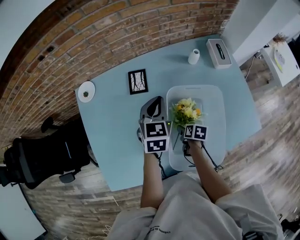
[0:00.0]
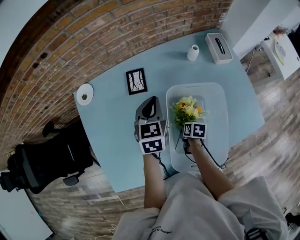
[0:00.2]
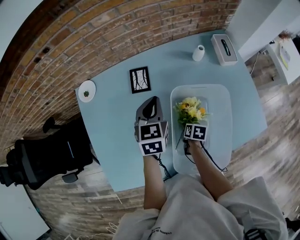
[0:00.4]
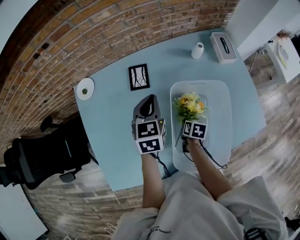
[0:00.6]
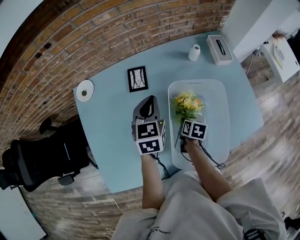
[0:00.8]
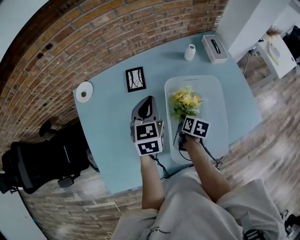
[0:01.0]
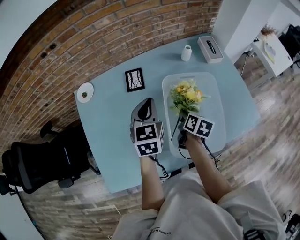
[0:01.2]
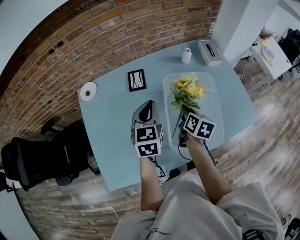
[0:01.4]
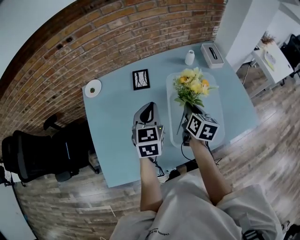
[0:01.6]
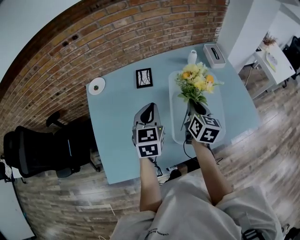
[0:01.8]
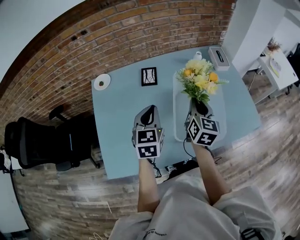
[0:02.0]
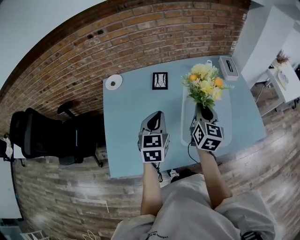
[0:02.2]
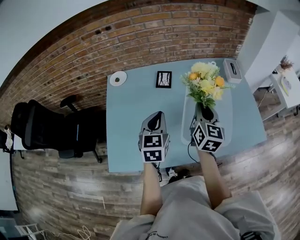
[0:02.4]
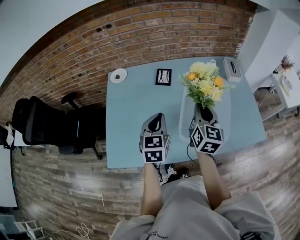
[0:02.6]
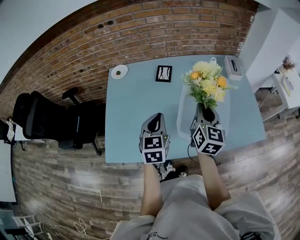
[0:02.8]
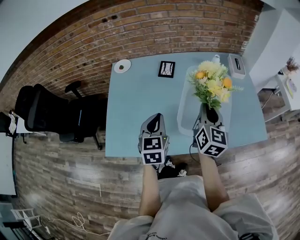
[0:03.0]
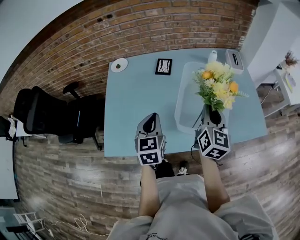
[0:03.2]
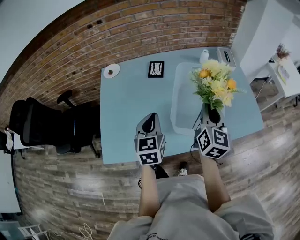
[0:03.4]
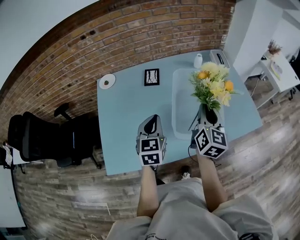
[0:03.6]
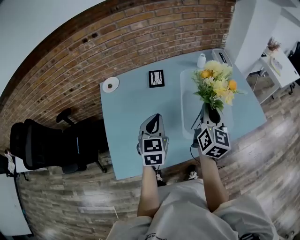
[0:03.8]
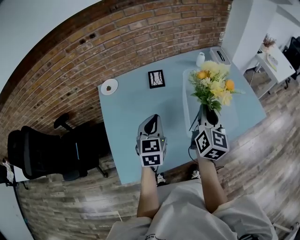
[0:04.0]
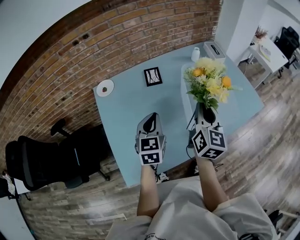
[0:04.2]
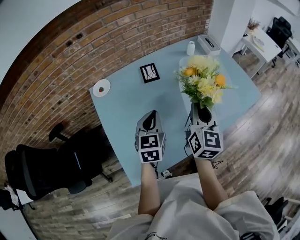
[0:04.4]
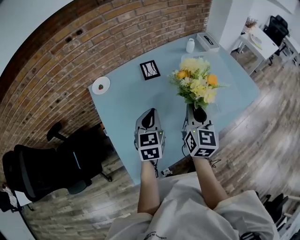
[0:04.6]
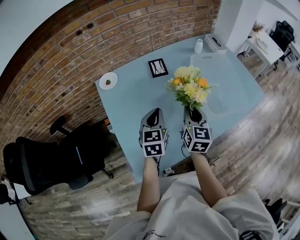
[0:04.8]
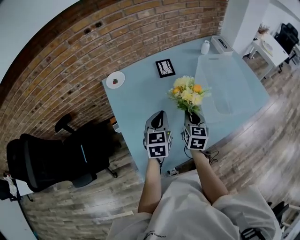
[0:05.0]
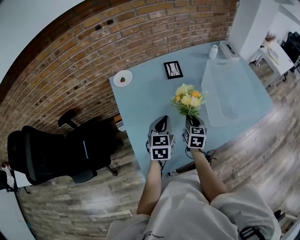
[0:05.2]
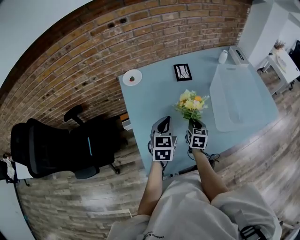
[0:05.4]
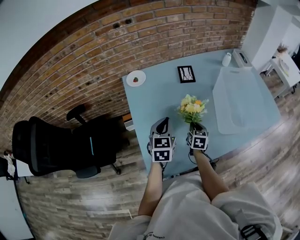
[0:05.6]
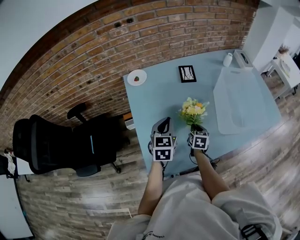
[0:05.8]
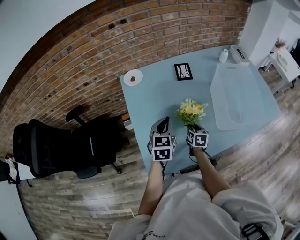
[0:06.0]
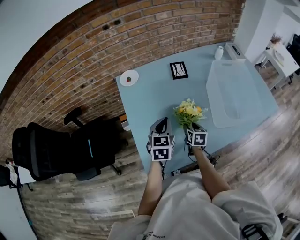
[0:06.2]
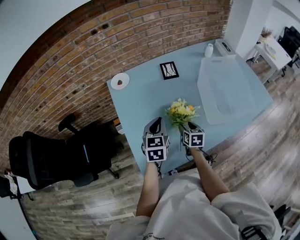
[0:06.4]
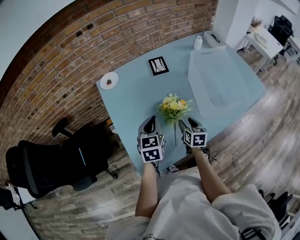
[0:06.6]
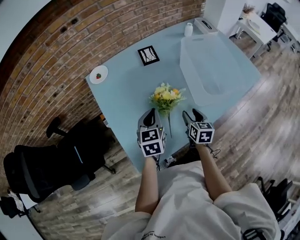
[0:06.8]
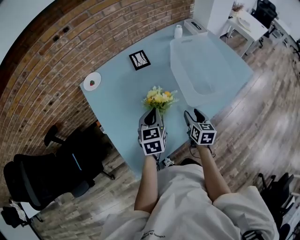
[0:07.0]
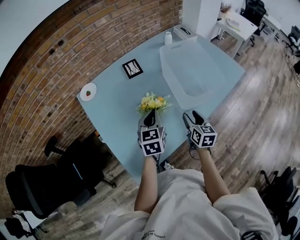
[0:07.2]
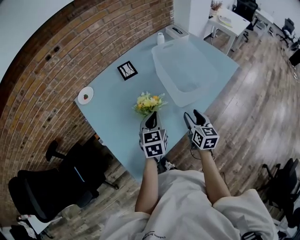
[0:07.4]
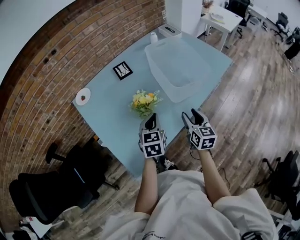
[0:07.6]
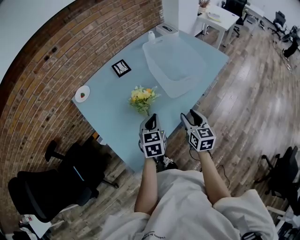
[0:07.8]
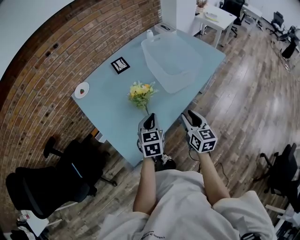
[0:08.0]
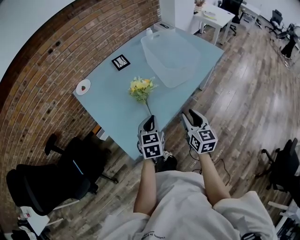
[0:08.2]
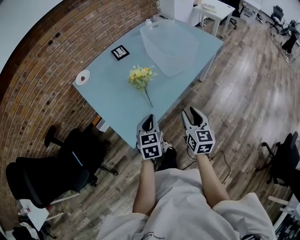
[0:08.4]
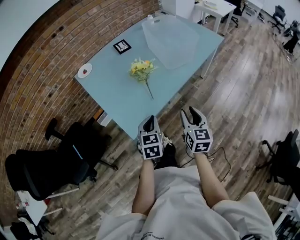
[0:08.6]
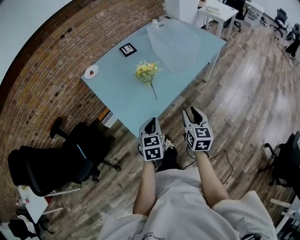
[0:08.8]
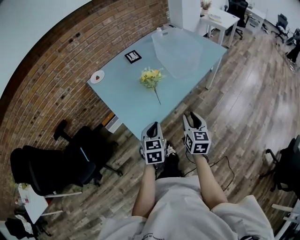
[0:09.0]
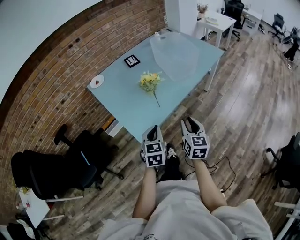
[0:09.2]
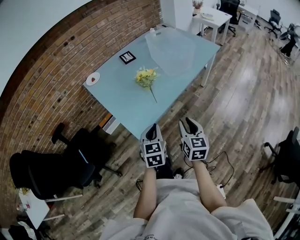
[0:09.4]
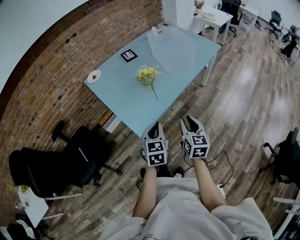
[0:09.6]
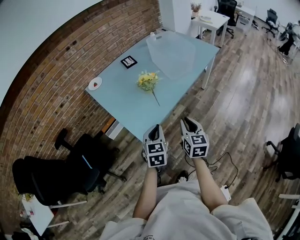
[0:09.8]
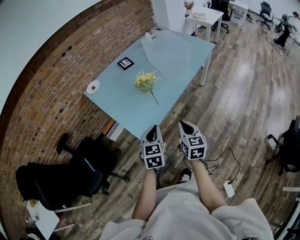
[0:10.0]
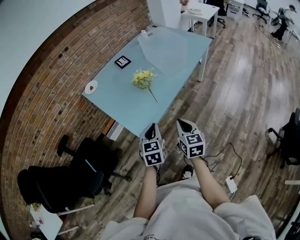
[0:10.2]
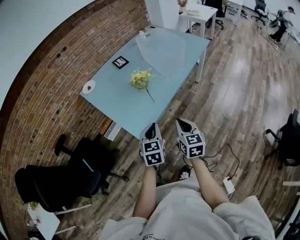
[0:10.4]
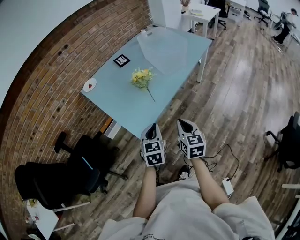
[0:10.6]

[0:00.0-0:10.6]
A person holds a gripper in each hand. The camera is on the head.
0:00.0 to 0:01.6: The right gripper travels upward by roughly 20 cm, points its fingers some 30 degrees further upward, and closes up, while the left gripper moves backward and to the left, approximately 15 cm.
0:01.6 to 0:03.0: The right gripper moves upward and backward, some 15 cm, and changes its angle by about 30 degrees. The left gripper heads backward, covering some 15 cm.
0:03.0 to 0:04.6: The right gripper moves to the left and backward, approximately 15 cm; the left gripper goes approximately 10 cm to the left, and swivels roughly 20 degrees.
0:04.6 to 0:06.0: The left gripper travels to the left by roughly 10 cm, while the right gripper goes roughly 30 cm downward, and angles its fingers downward, by approximately 40 degrees.
0:06.0 to 0:07.6: The left gripper goes roughly 20 cm to the right and backward; the right gripper shifts about 30 cm to the right, upward and backward, changes its angle by about 30 degrees, and opens its fingers.
0:07.6 to 0:09.0: The grippers both shift backward by about 25 cm.
0:09.0 to 0:10.6: The right gripper is displaced backward by some 5 cm, and closes.

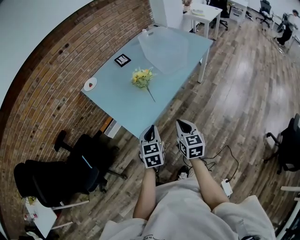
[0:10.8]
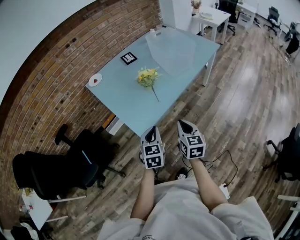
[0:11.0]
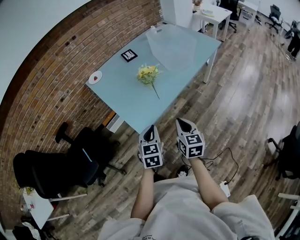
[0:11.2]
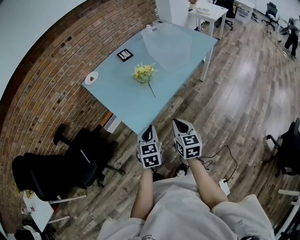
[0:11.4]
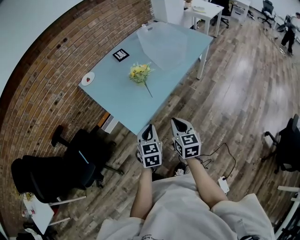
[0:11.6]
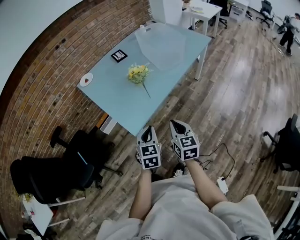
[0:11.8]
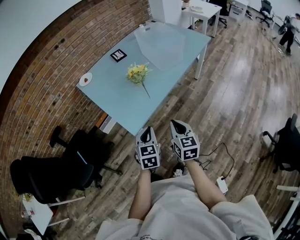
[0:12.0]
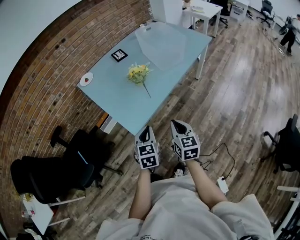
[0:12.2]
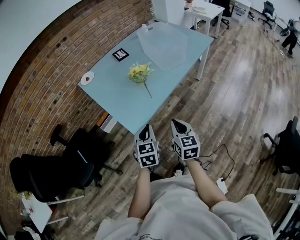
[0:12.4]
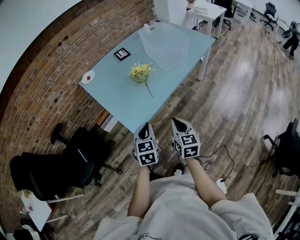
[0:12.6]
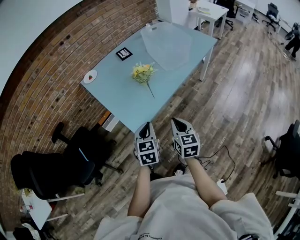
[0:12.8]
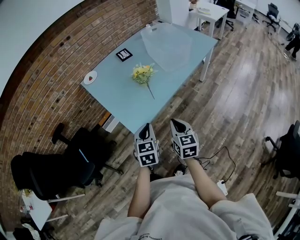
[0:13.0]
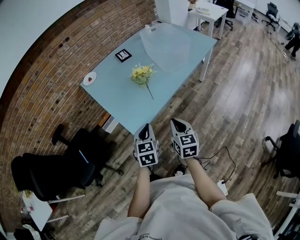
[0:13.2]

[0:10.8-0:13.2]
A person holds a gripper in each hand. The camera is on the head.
0:10.8 to 0:13.2: The grippers stay close to where they were, moving slightly.

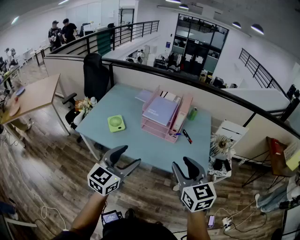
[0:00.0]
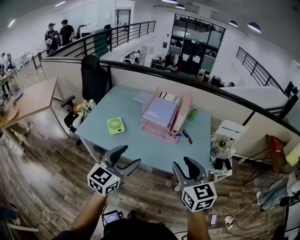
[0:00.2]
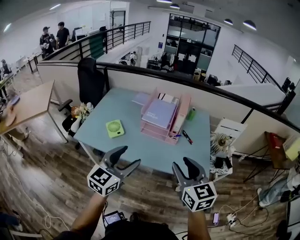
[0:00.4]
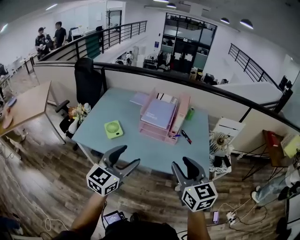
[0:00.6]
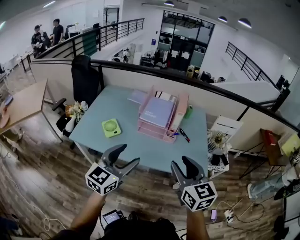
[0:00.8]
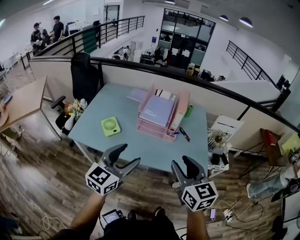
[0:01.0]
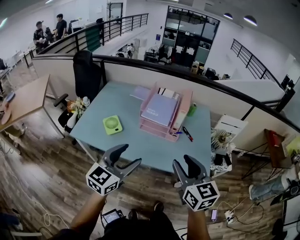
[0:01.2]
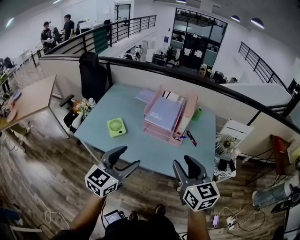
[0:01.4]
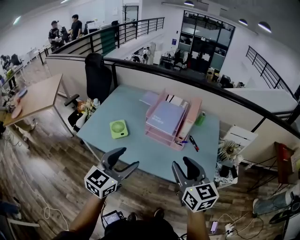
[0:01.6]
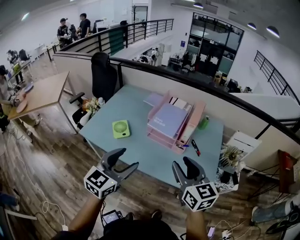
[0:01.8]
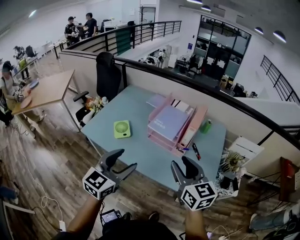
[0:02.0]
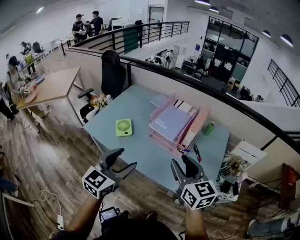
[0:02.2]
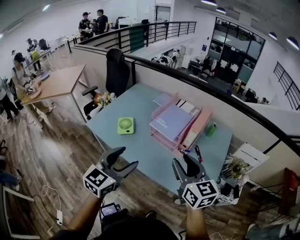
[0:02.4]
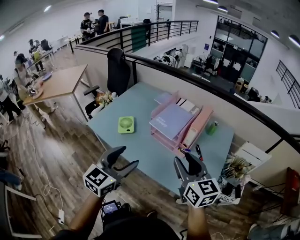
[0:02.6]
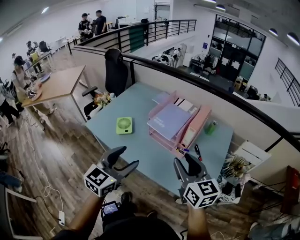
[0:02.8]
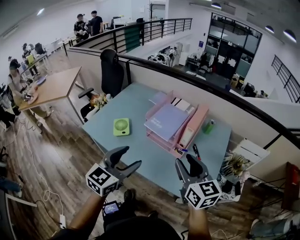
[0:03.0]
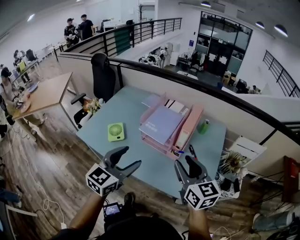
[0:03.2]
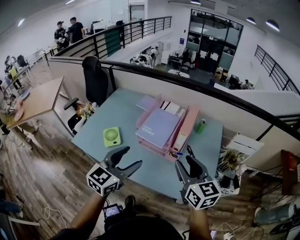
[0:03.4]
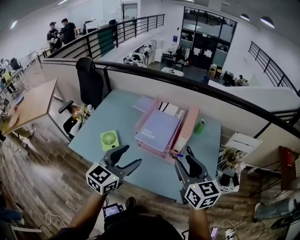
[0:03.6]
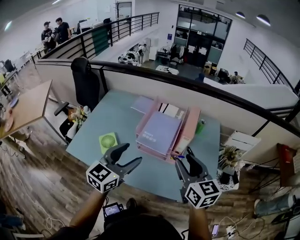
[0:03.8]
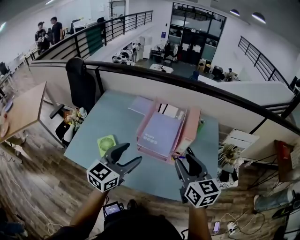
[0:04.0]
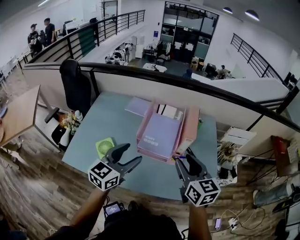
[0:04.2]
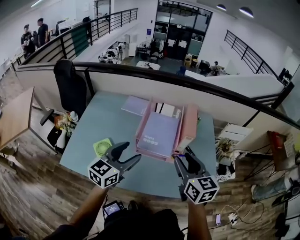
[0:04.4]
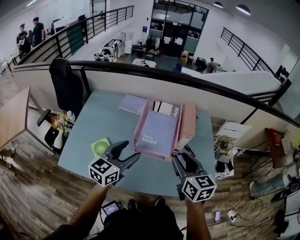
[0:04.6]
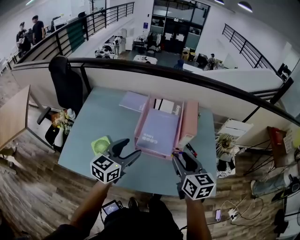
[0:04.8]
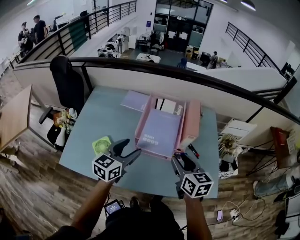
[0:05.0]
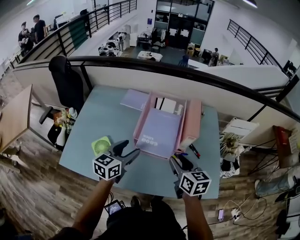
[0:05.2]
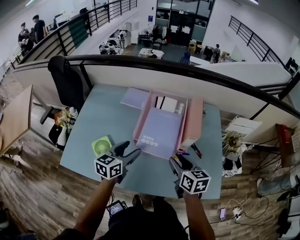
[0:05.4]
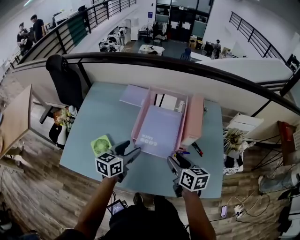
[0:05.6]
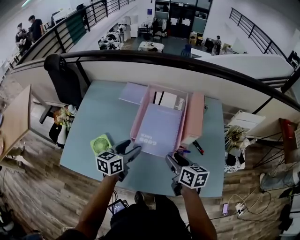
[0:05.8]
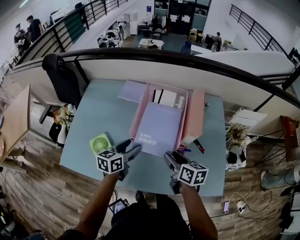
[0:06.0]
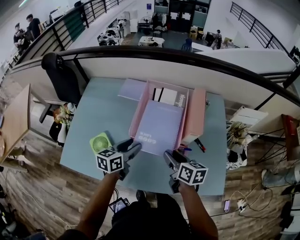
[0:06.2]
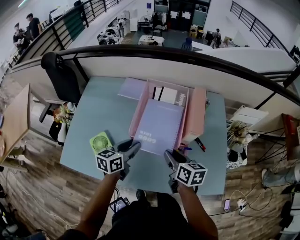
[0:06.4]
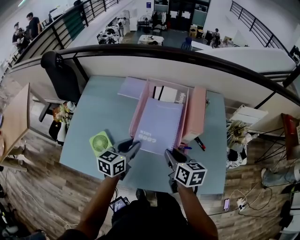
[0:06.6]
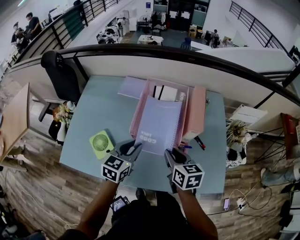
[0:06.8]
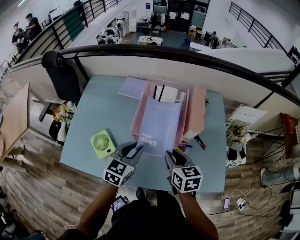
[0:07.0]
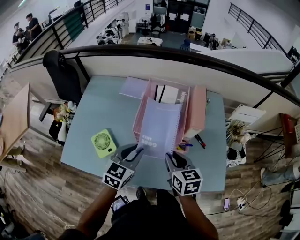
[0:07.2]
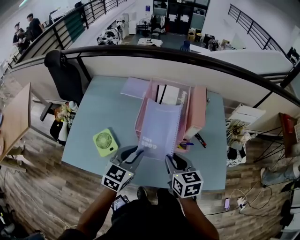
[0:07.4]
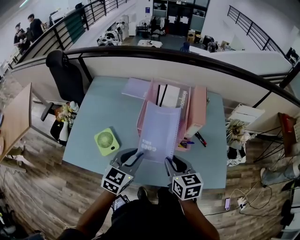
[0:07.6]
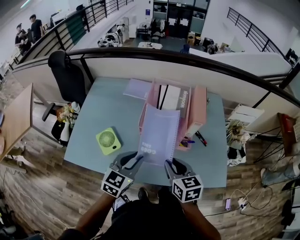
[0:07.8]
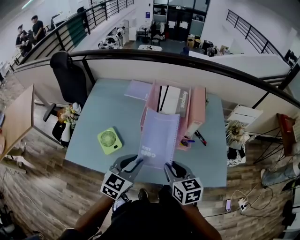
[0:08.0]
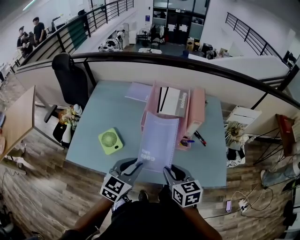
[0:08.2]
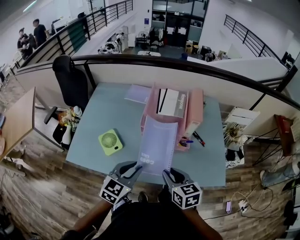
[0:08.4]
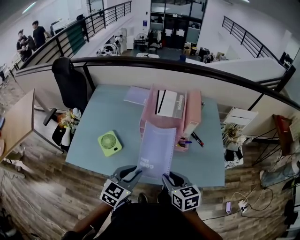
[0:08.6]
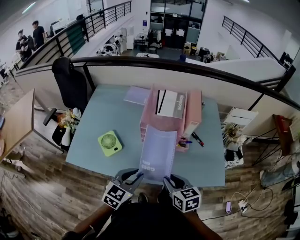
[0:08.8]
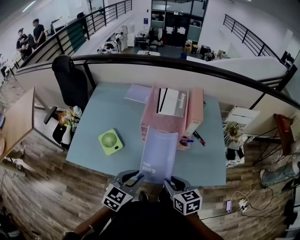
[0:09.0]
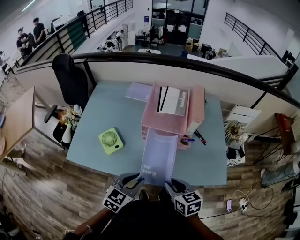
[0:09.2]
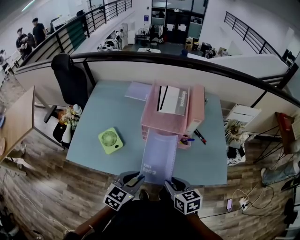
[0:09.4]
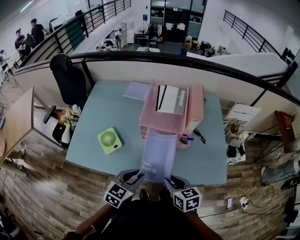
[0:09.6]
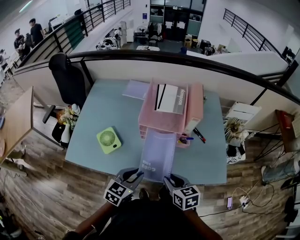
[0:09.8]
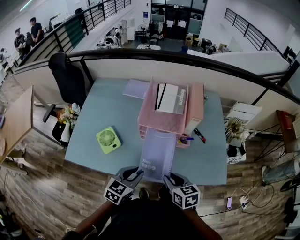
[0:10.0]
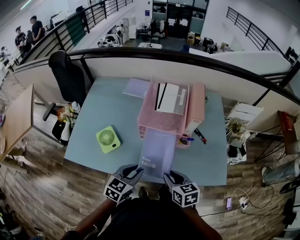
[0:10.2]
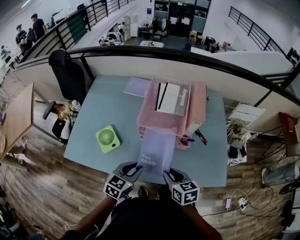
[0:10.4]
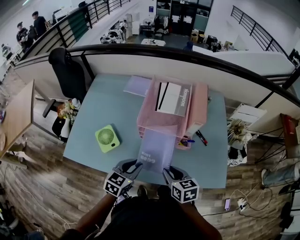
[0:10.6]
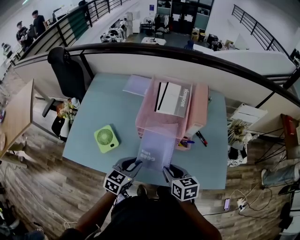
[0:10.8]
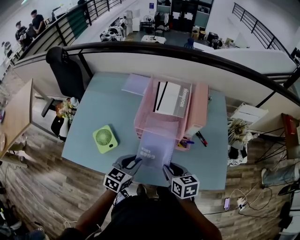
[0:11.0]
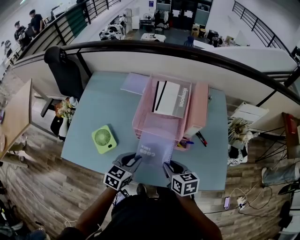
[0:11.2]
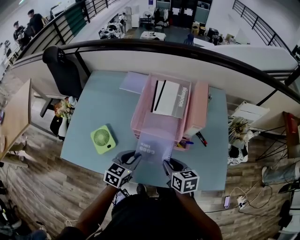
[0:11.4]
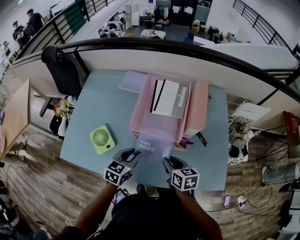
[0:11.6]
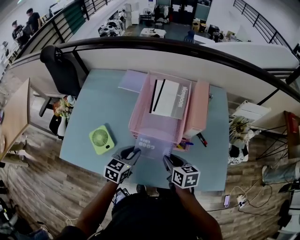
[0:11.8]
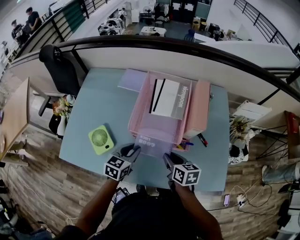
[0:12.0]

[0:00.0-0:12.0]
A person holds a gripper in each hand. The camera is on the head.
0:00.0 to 0:01.6: The two grippers go about 5 cm forward.
0:01.6 to 0:03.0: The right gripper is displaced to the right and forward by about 10 cm, while the left gripper shifts some 10 cm to the right.
0:03.0 to 0:04.4: The right gripper goes roughly 10 cm forward and to the left, and turns by about 20 degrees; the left gripper shifts approximately 20 cm forward and to the left, and rotates about 20 degrees.
0:04.4 to 0:06.0: The two grippers go approximately 20 cm downward and forward. The left gripper turns by about 30 degrees. The right gripper swivels about 30 degrees.
0:06.0 to 0:07.6: The right gripper shifts approximately 10 cm backward, and changes its angle by some 20 degrees. The left gripper shifts about 10 cm backward and upward, changes its angle by some 30 degrees, and closes its fingers.
0:07.6 to 0:09.0: The two grippers go some 15 cm backward.
0:09.0 to 0:10.4: The right gripper shifts roughly 5 cm forward; the left gripper moves downward and forward, roughly 10 cm.
0:10.4 to 0:12.0: The grippers both shift forward by approximately 15 cm.
